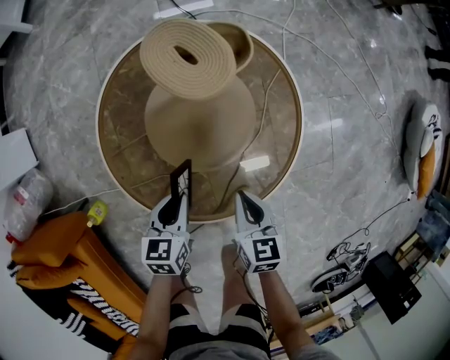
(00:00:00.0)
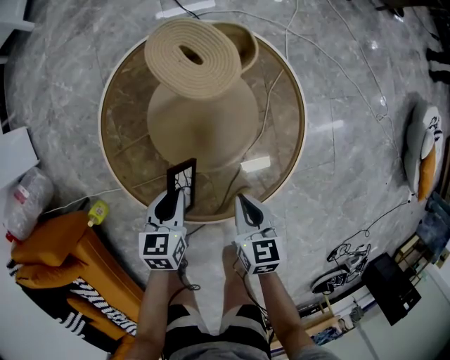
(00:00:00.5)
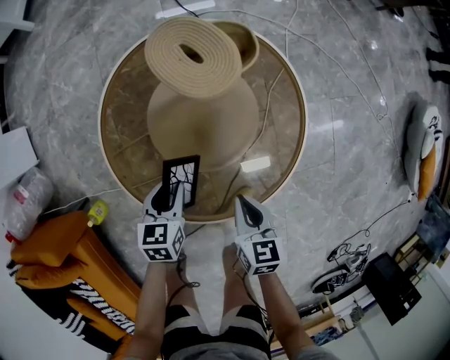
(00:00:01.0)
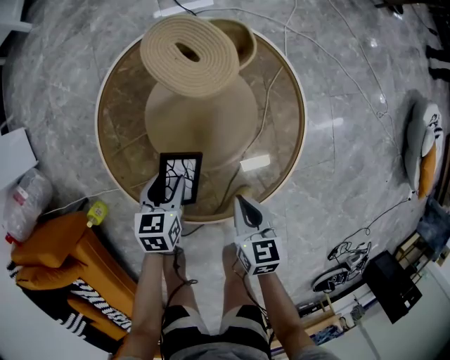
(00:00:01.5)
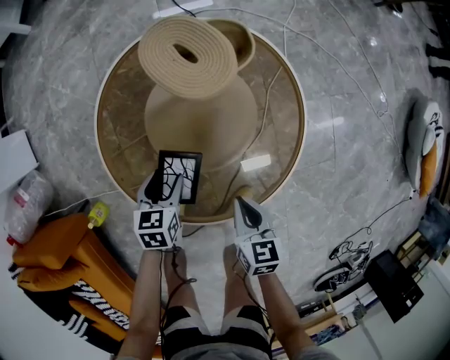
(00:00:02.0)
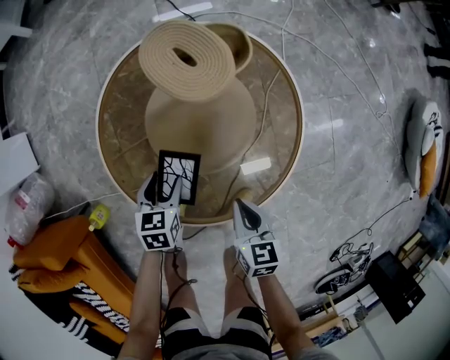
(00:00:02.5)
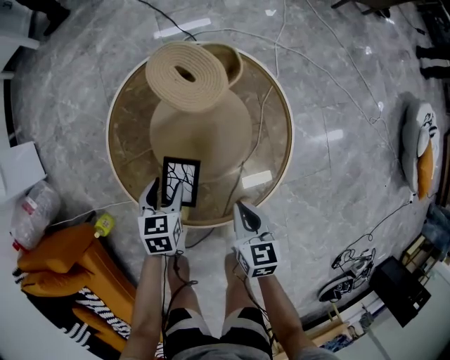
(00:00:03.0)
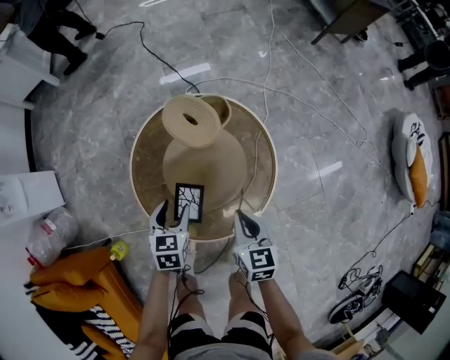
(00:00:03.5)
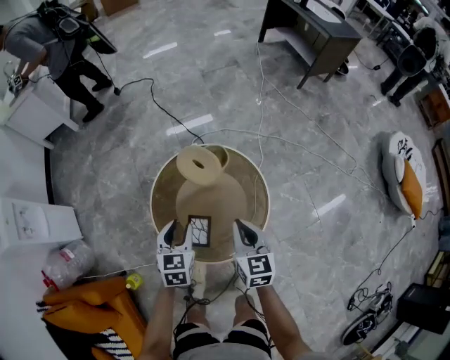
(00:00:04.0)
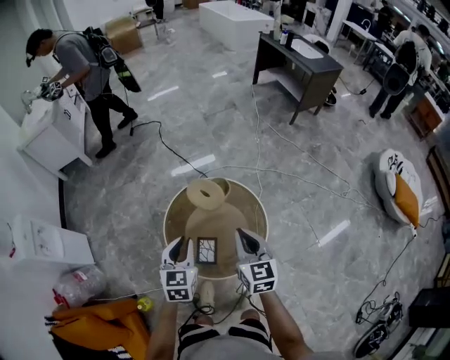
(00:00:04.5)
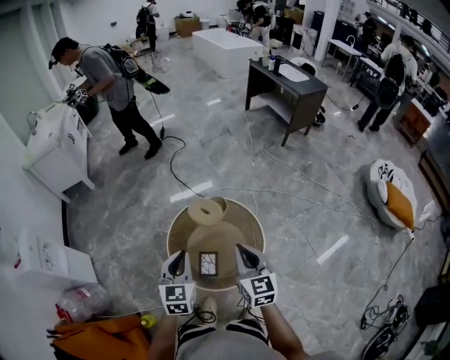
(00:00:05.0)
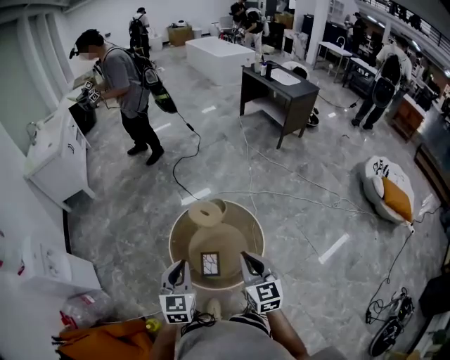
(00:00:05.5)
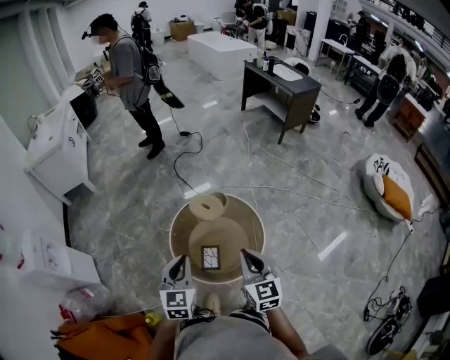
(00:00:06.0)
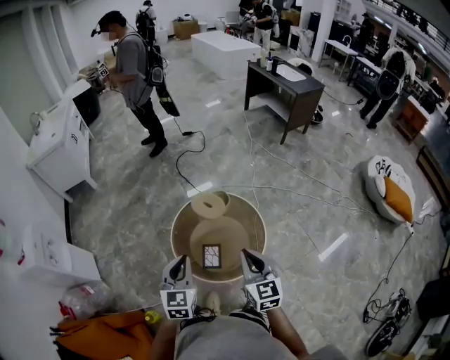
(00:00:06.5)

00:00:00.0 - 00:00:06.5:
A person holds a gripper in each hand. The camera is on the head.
00:00:00.0 - 00:00:02.0: The left gripper travels downward by approximately 5 cm, and opens up.
00:00:02.0 - 00:00:04.5: Both grippers travel together upward, roughly 50 cm. The left gripper turns by some 30 degrees, and closes. Meanwhile the right gripper swivels about 30 degrees.
00:00:04.5 - 00:00:06.5: The grippers both shift backward and upward by about 15 cm.

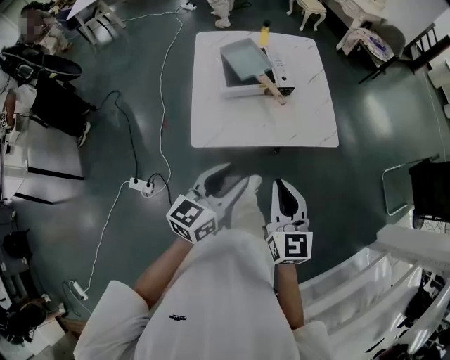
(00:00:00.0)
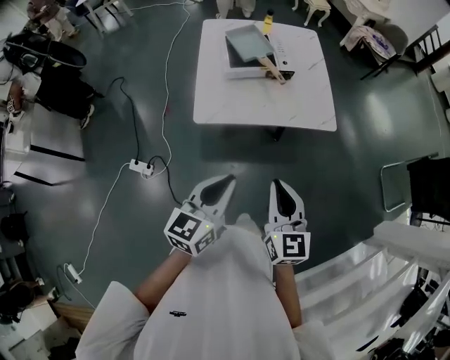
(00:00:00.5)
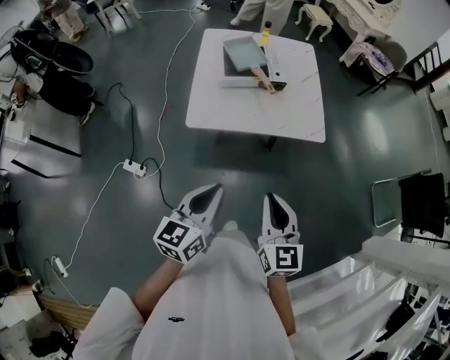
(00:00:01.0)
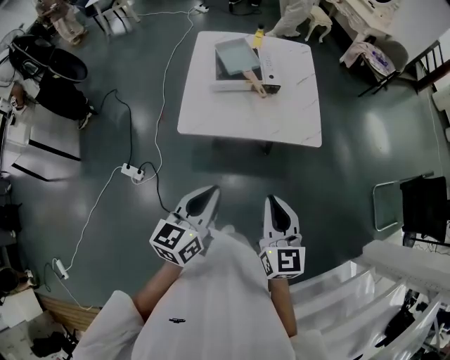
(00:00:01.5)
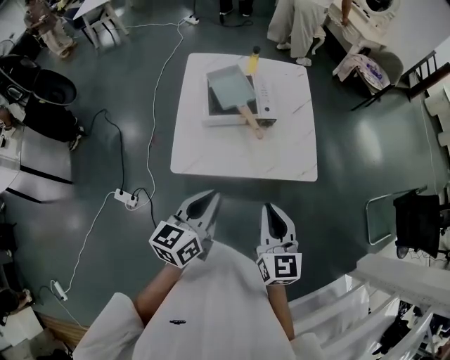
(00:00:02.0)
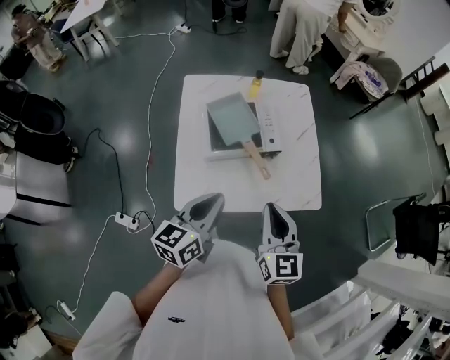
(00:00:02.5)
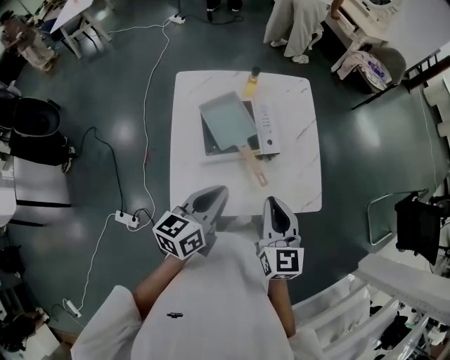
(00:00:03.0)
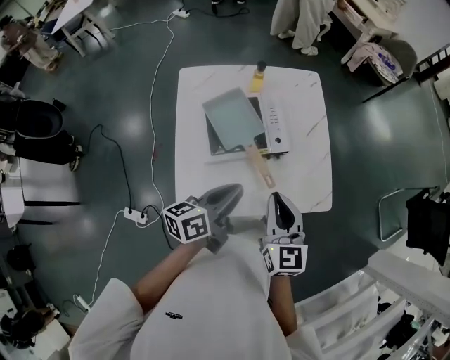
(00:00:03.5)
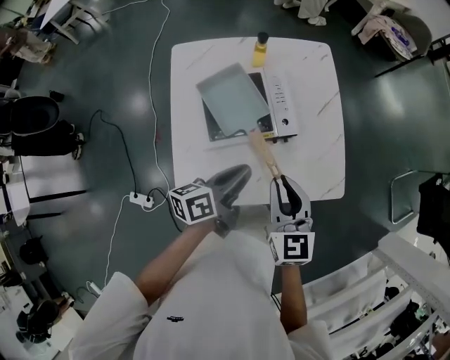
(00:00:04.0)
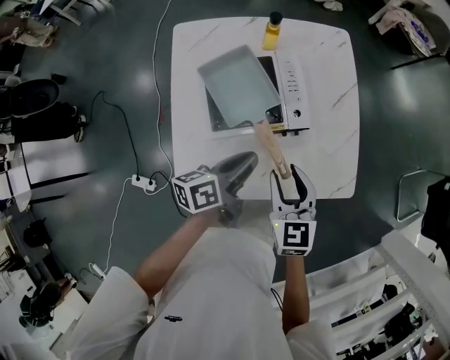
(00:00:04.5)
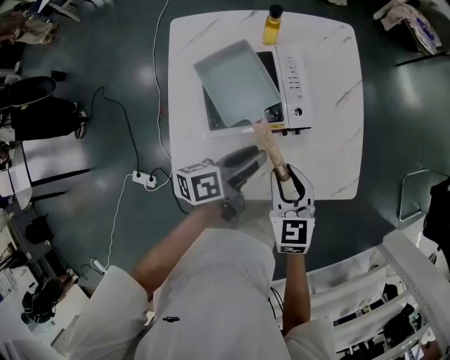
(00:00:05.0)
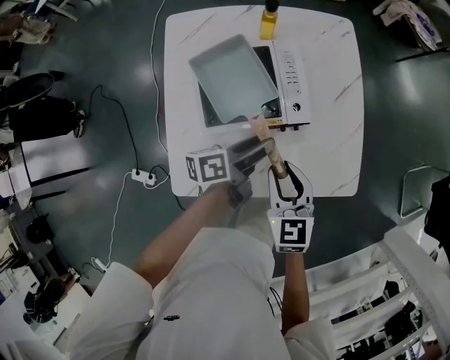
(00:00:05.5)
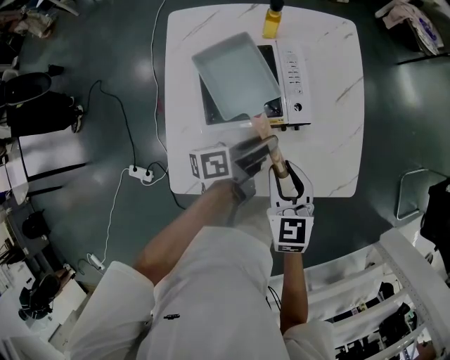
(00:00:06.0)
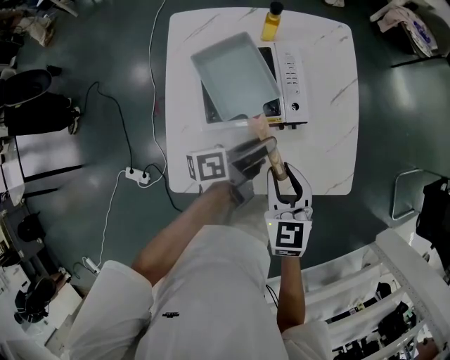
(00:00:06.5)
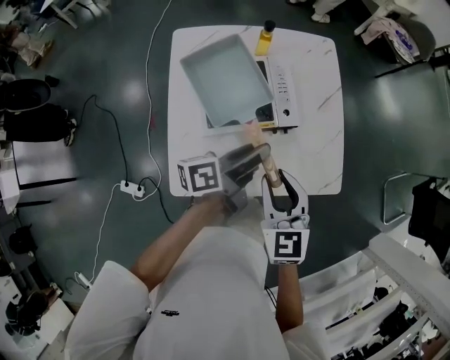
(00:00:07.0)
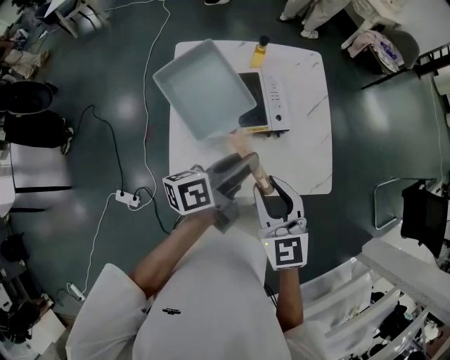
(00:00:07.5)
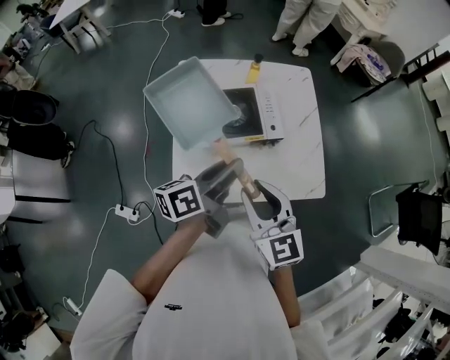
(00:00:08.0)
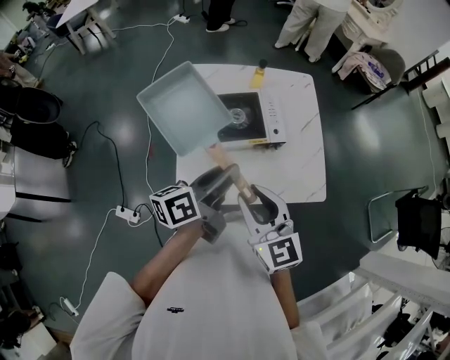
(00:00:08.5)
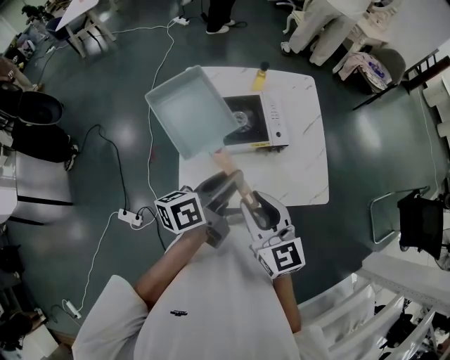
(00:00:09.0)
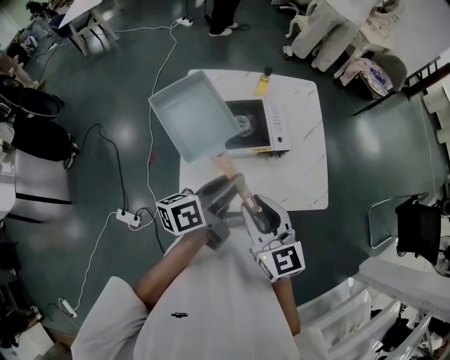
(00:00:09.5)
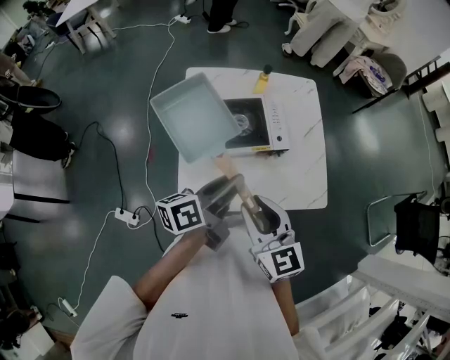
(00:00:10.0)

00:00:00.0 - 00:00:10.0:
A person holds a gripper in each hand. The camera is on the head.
00:00:00.0 - 00:00:02.0: The left gripper moves approximately 15 cm backward and comes back, and closes up, while the right gripper travels to the right by roughly 5 cm, and reaches roughly 10 cm backward, then returns.
00:00:02.0 - 00:00:04.0: The right gripper goes roughly 25 cm forward, while the left gripper shifts about 30 cm forward and downward, and turns by roughly 40 degrees.
00:00:04.0 - 00:00:06.0: The left gripper shifts roughly 10 cm downward and forward, and opens. The right gripper moves downward, some 10 cm.
00:00:06.0 - 00:00:08.0: Both grippers travel together upward and backward, approximately 25 cm. The right gripper swivels roughly 20 degrees.
00:00:08.0 - 00:00:10.0: The grippers move only a little.

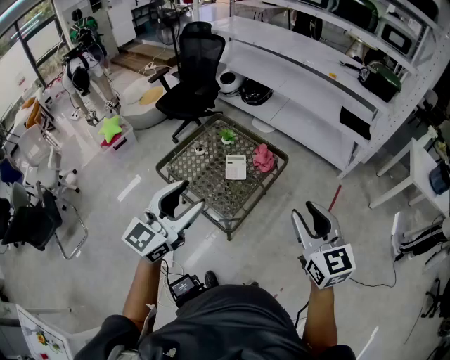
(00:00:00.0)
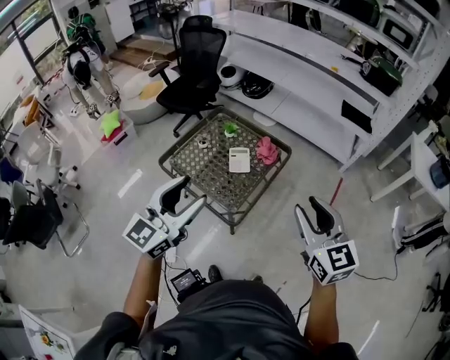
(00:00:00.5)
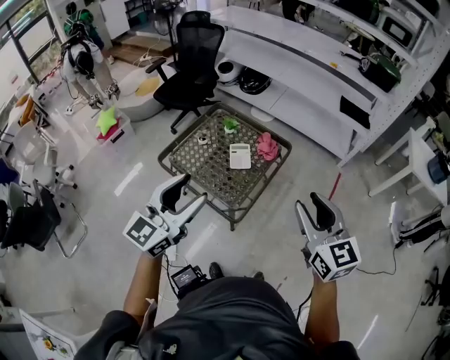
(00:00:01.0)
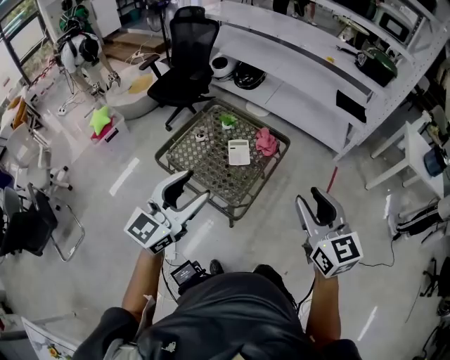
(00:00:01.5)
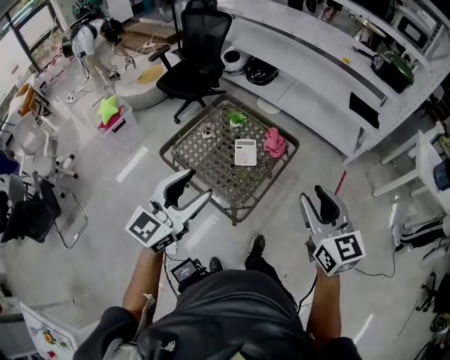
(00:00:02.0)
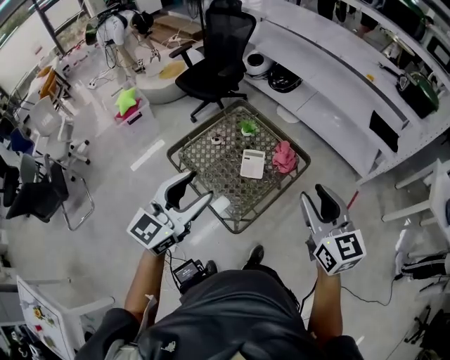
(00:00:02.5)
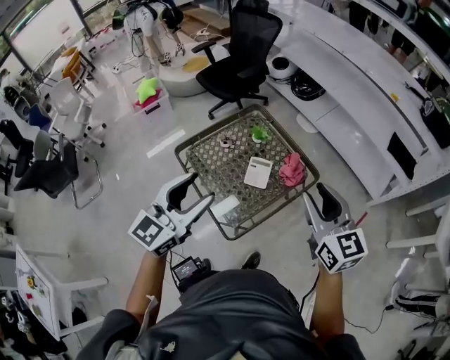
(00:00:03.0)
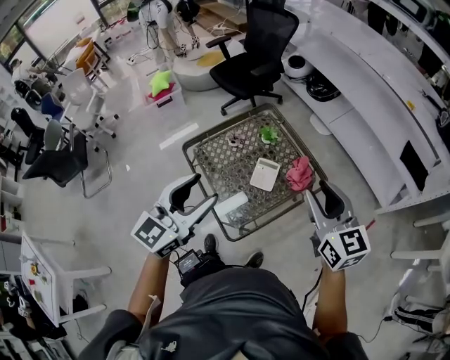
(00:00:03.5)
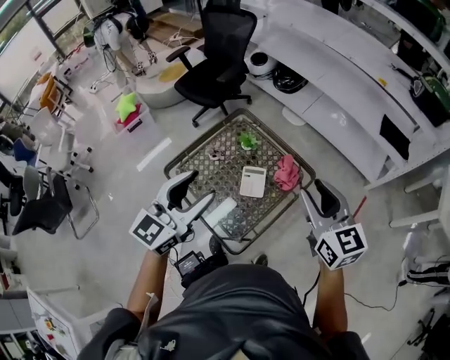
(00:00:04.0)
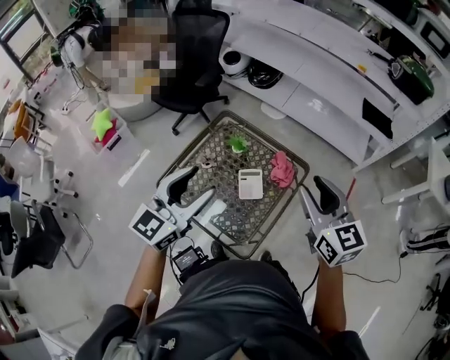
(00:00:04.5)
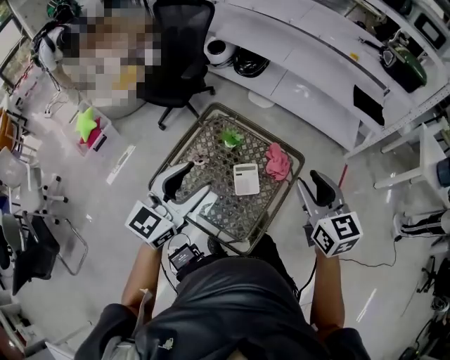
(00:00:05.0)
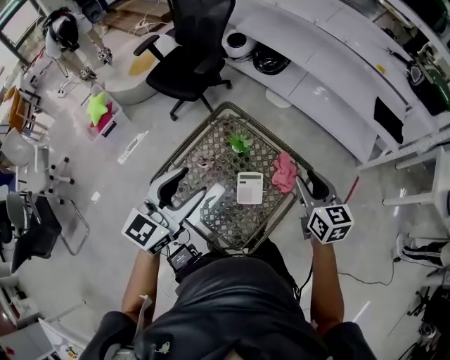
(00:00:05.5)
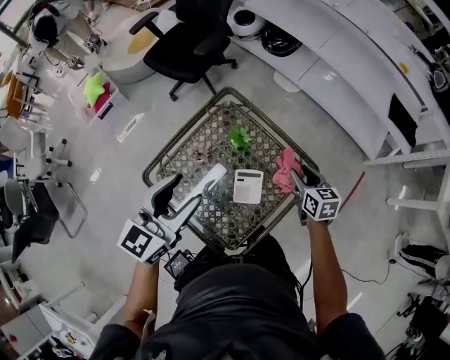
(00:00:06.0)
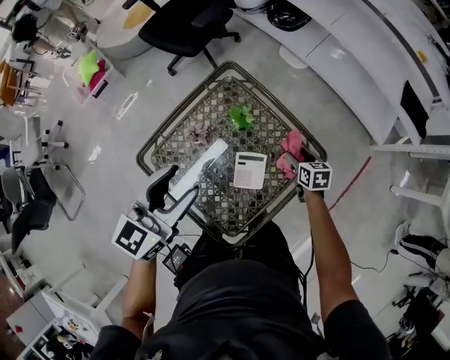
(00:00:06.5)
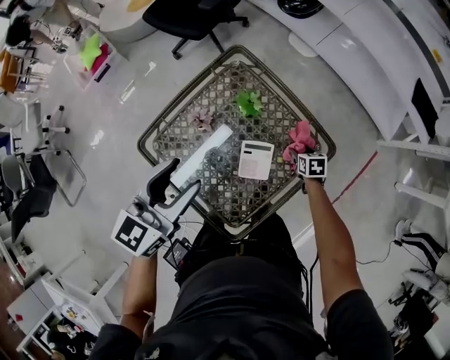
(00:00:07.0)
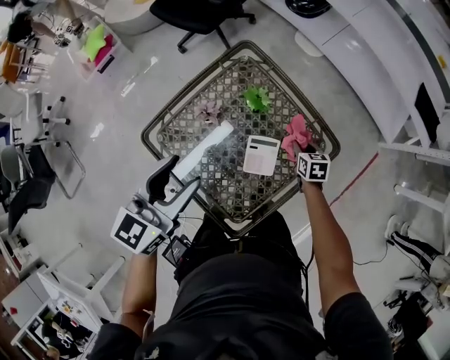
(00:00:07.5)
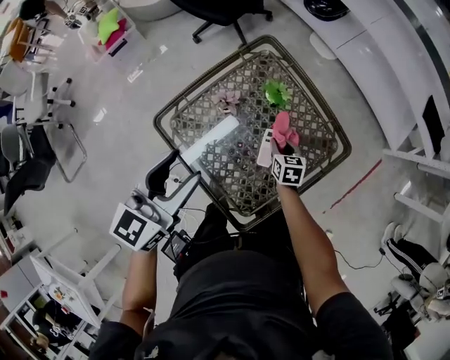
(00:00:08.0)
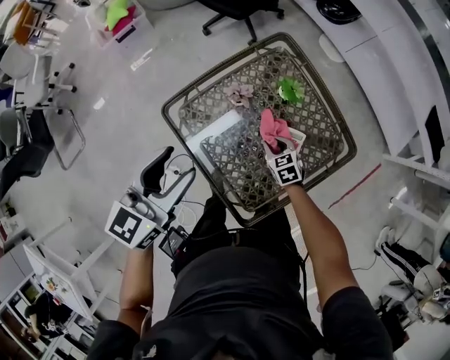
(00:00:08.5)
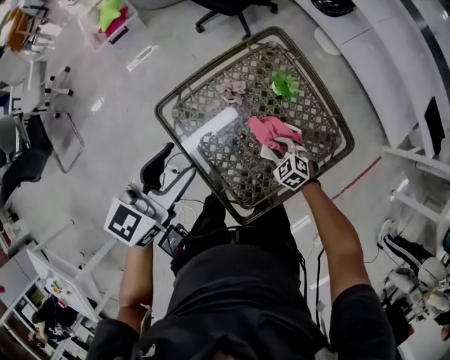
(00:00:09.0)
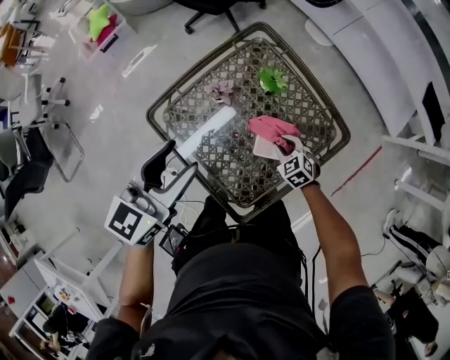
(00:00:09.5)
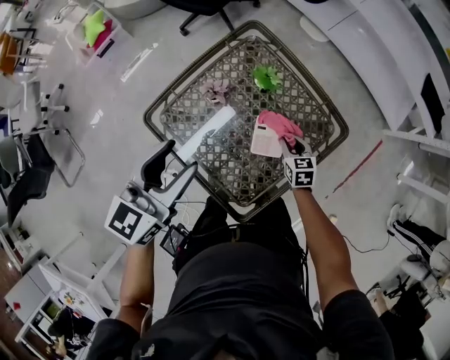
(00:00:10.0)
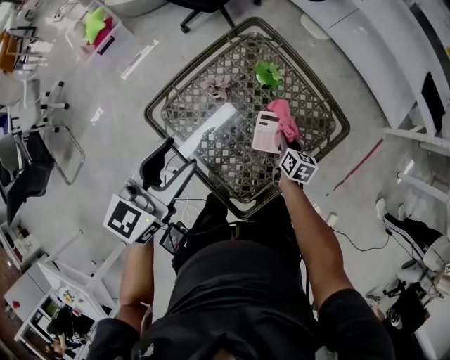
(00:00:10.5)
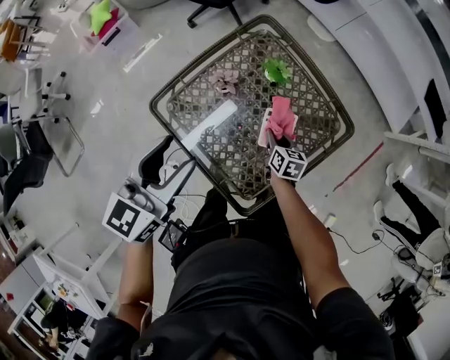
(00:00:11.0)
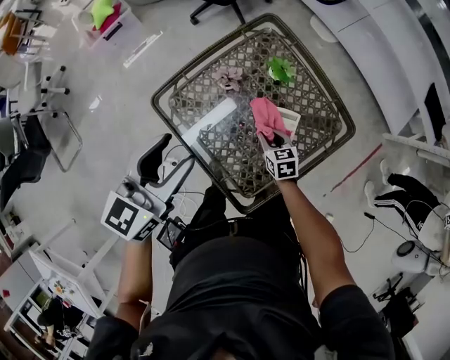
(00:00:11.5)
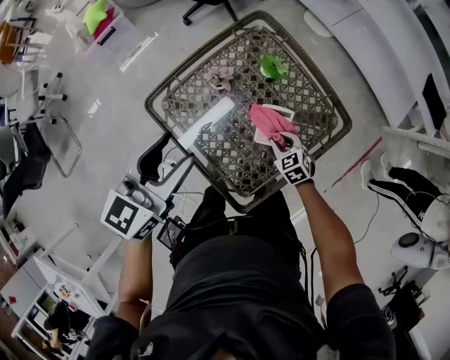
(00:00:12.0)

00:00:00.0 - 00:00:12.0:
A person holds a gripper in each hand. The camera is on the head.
00:00:00.0 - 00:00:02.0: The right gripper goes about 5 cm to the left; the left gripper ends up roughly 5 cm from where it was.
00:00:02.0 - 00:00:04.0: The two grippers go roughly 20 cm forward.
00:00:04.0 - 00:00:06.0: The right gripper moves downward and forward, approximately 35 cm, and turns by roughly 30 degrees; the left gripper is displaced forward, downward and to the left by about 20 cm.
00:00:06.0 - 00:00:08.0: The left gripper heads to the left, downward and backward, covering some 10 cm. Meanwhile the right gripper heads downward and to the left, covering roughly 25 cm.
00:00:08.0 - 00:00:10.0: The right gripper goes about 5 cm to the right.
00:00:10.0 - 00:00:12.0: The right gripper is displaced to the left and backward by some 5 cm, and rotates roughly 30 degrees.
